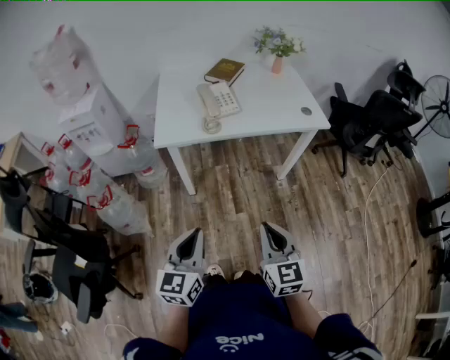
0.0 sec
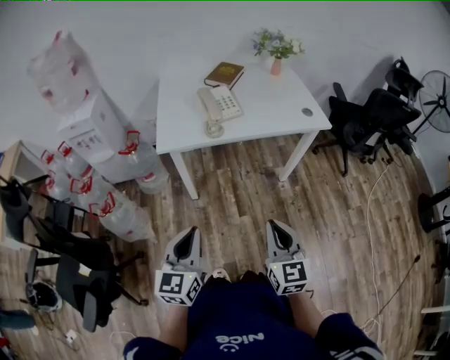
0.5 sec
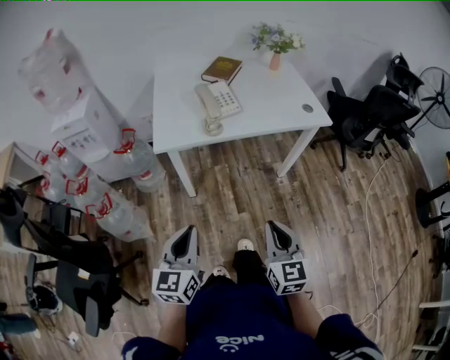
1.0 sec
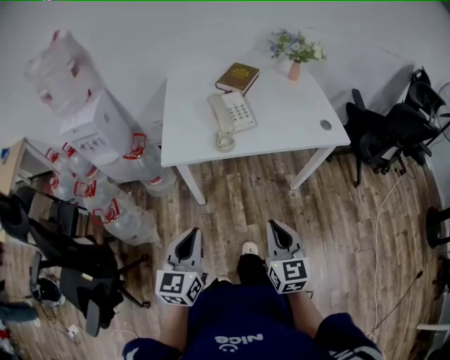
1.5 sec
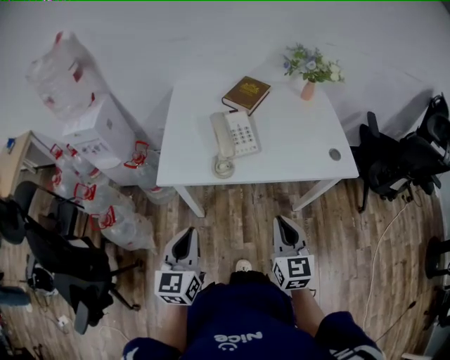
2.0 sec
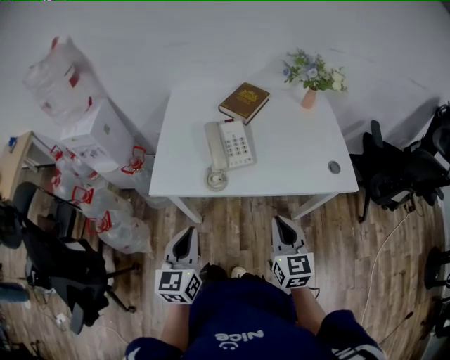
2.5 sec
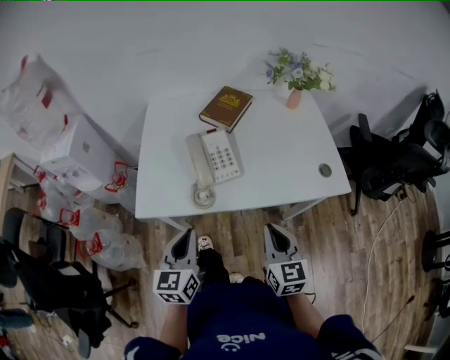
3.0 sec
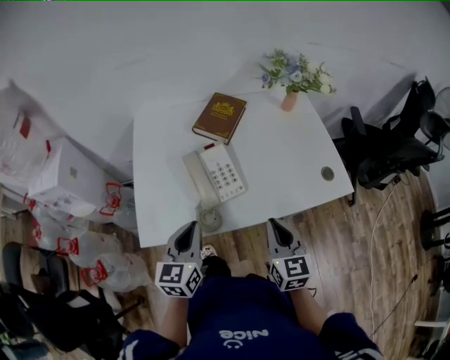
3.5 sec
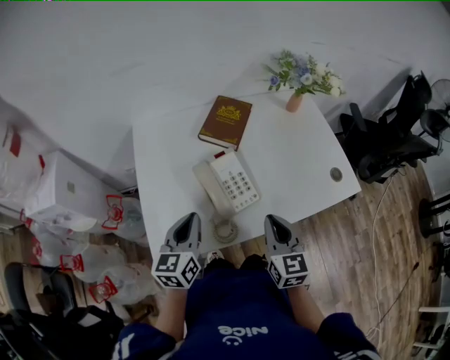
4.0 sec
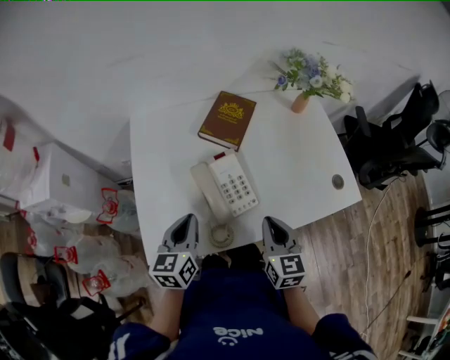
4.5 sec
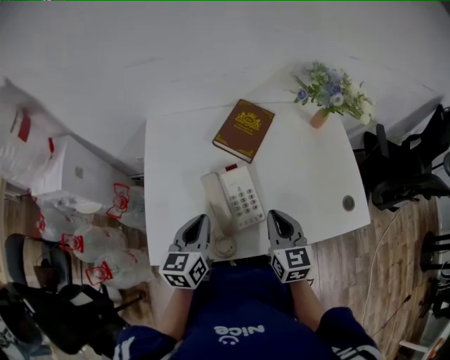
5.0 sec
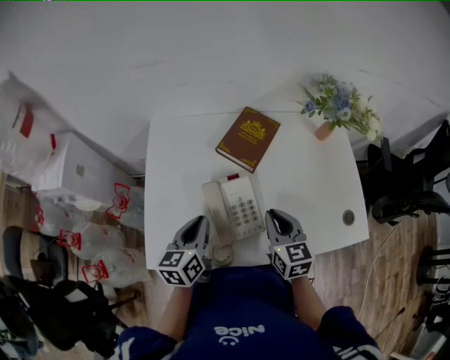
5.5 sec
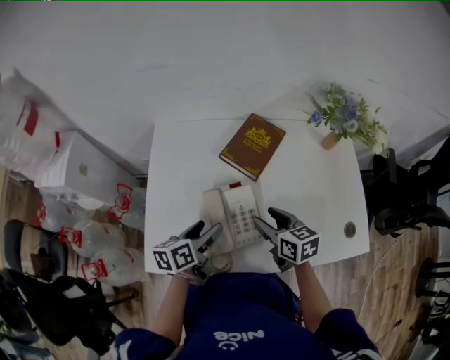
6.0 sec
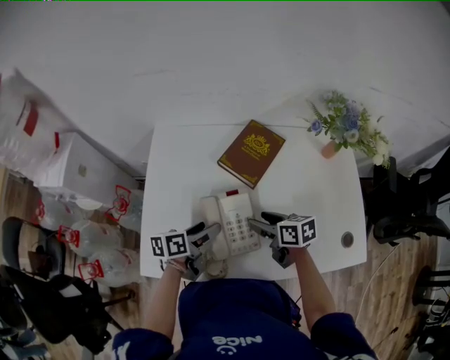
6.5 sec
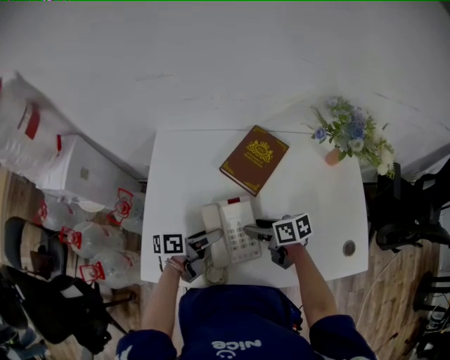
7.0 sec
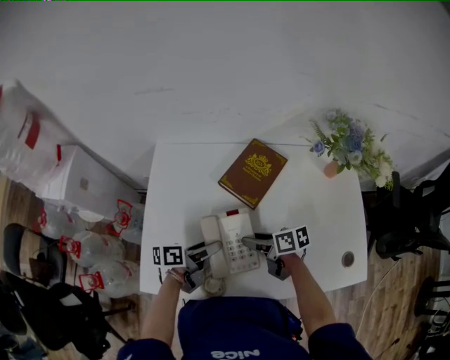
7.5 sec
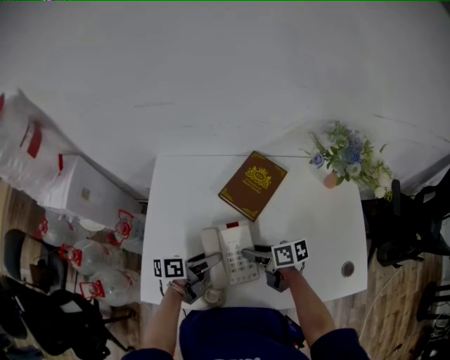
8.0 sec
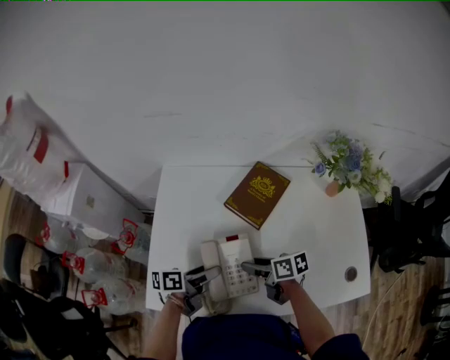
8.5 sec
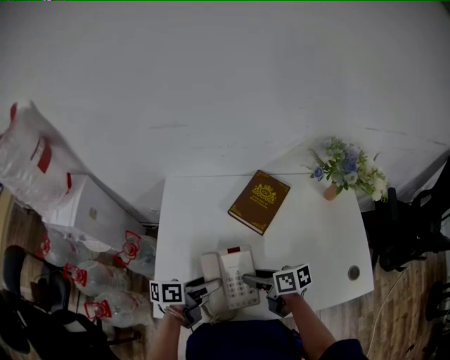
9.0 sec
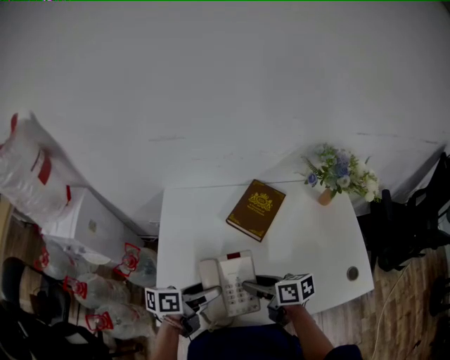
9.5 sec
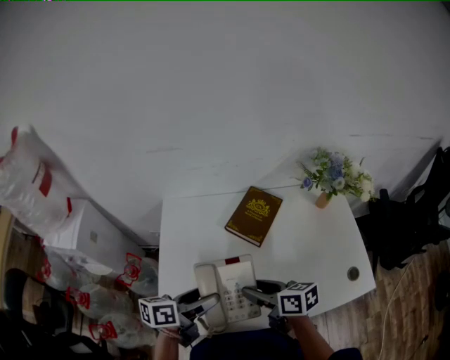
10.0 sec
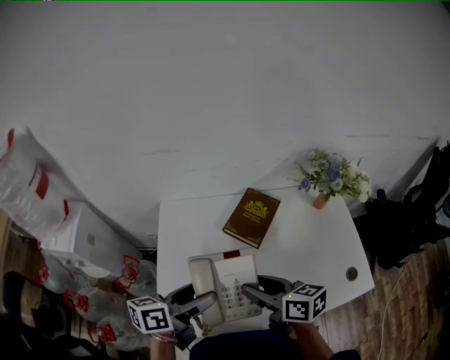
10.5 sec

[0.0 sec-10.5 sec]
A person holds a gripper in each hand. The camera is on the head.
0.0 sec to 2.0 sec: The two grippers go approximately 25 cm forward.
2.0 sec to 4.0 sec: The grippers both shift forward by approximately 25 cm.
4.0 sec to 6.5 sec: The left gripper moves forward, downward and to the right, some 15 cm, swivels about 40 degrees, and opens; the right gripper heads forward and downward, covering roughly 20 cm, rotates roughly 60 degrees, and opens.
6.5 sec to 8.5 sec: The grippers make only small movements.
8.5 sec to 10.5 sec: The two grippers go about 20 cm upward. The left gripper rotates roughly 20 degrees. Meanwhile the right gripper changes its angle by approximately 30 degrees.

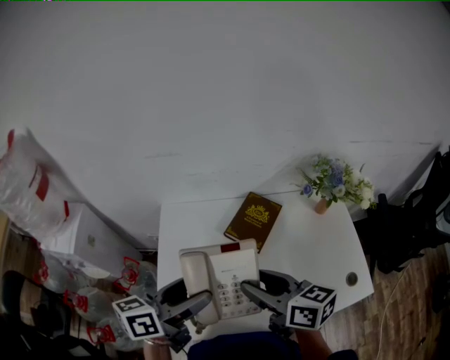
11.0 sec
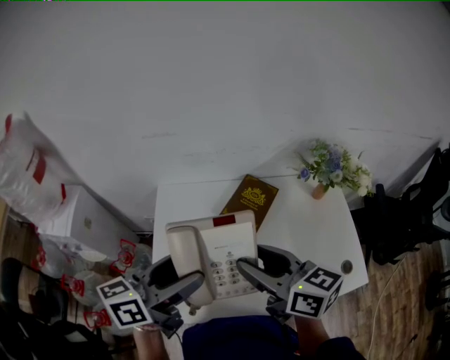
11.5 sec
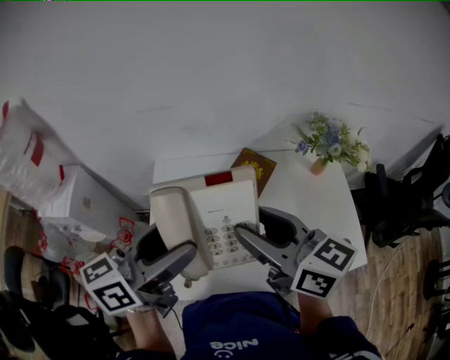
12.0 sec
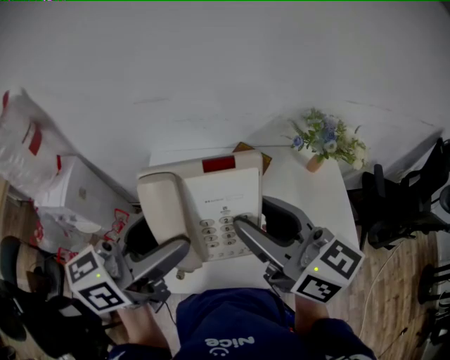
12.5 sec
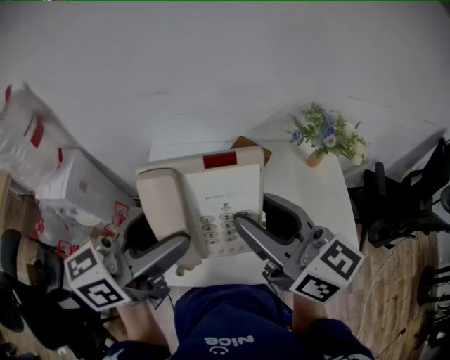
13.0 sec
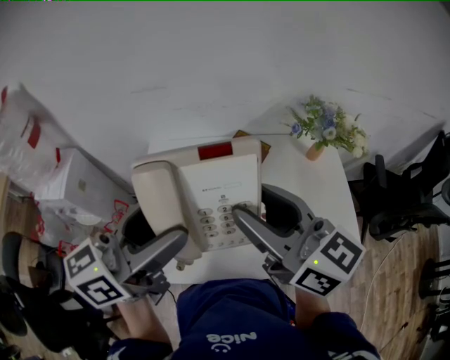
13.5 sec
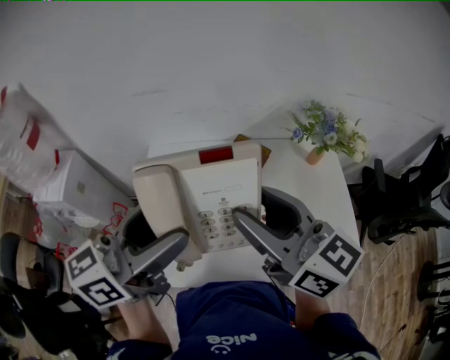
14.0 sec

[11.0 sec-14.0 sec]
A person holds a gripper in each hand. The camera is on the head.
11.0 sec to 12.5 sec: Both grippers travel together upward, some 15 cm. The right gripper turns by approximately 20 degrees. Meanwhile the left gripper rotates about 20 degrees.
12.5 sec to 14.0 sec: The grippers stay close to where they were, moving slightly.

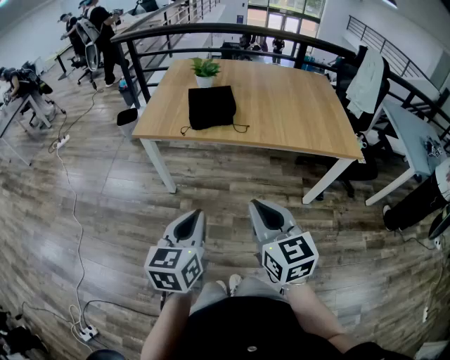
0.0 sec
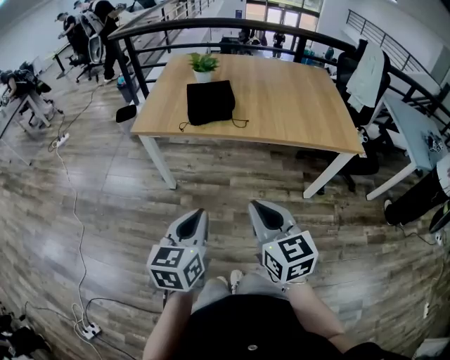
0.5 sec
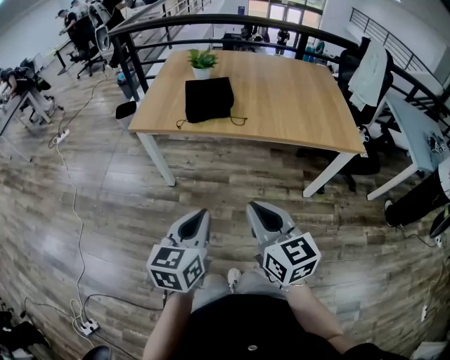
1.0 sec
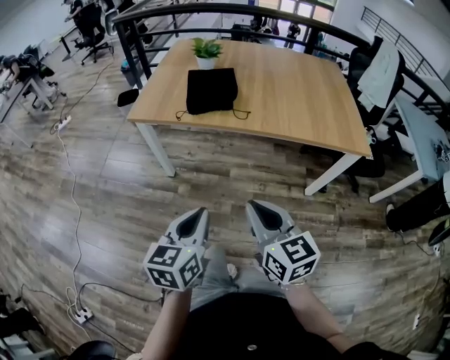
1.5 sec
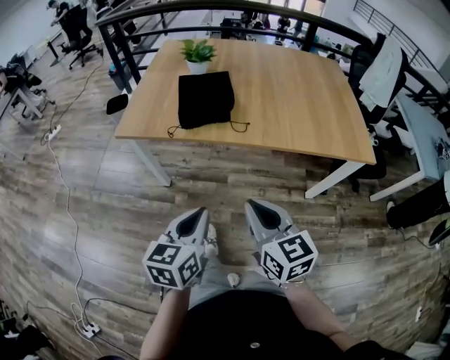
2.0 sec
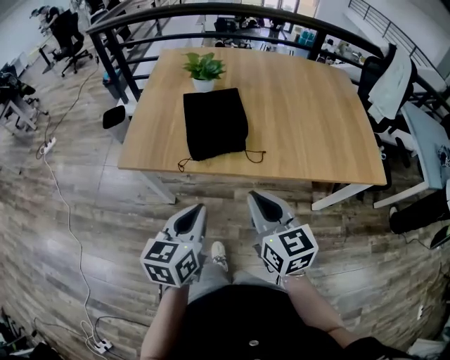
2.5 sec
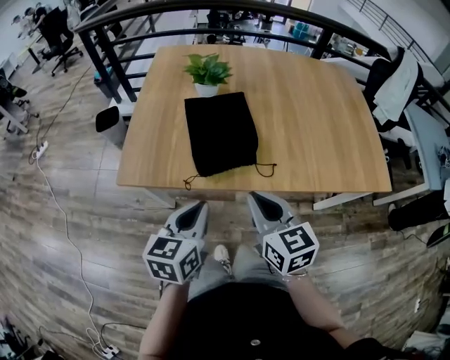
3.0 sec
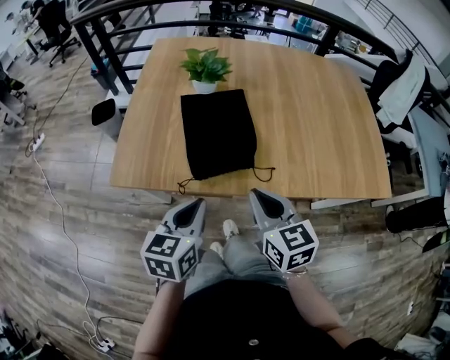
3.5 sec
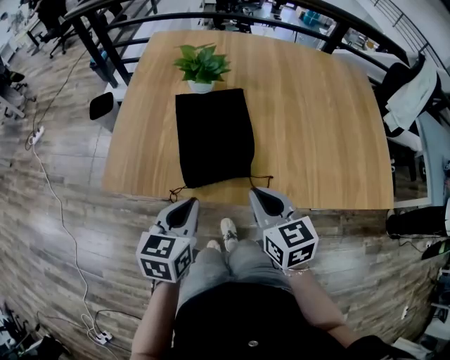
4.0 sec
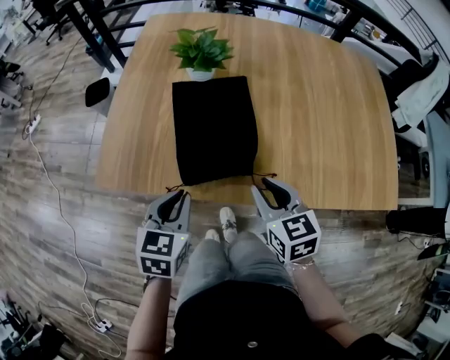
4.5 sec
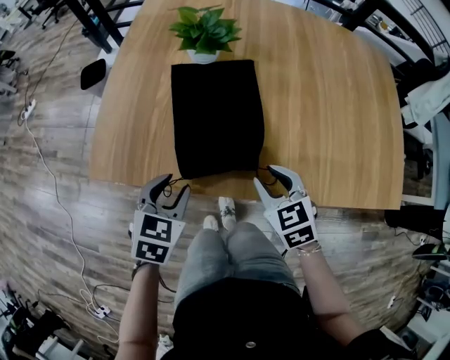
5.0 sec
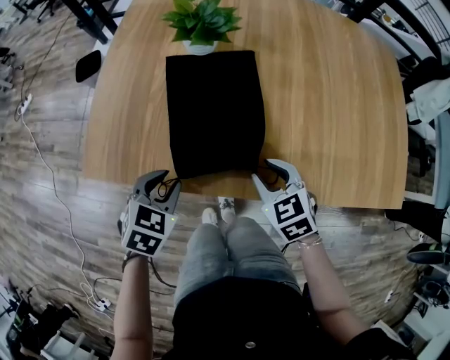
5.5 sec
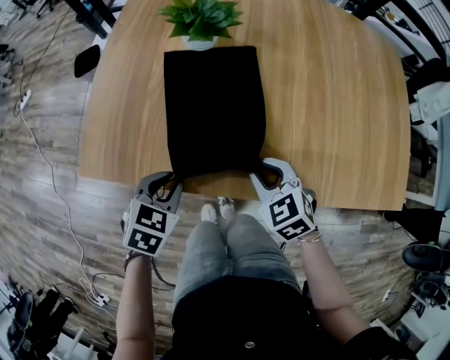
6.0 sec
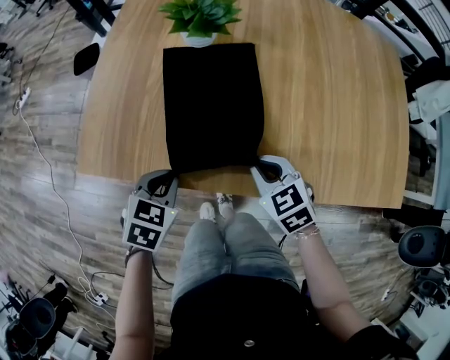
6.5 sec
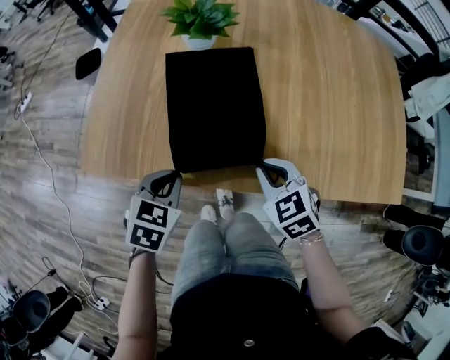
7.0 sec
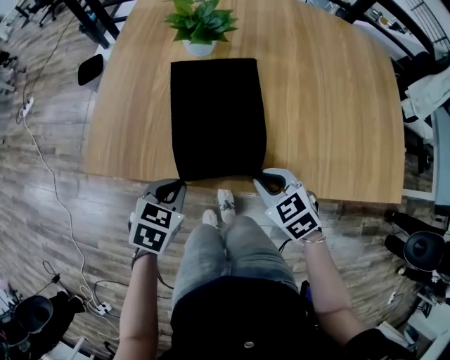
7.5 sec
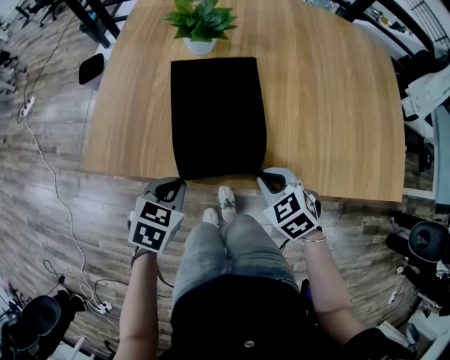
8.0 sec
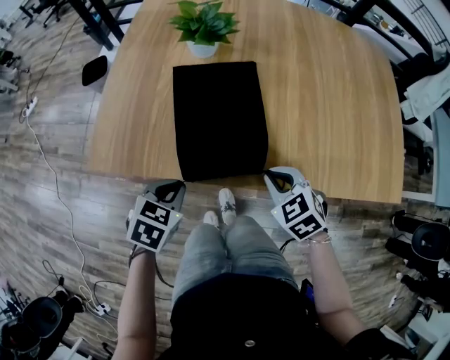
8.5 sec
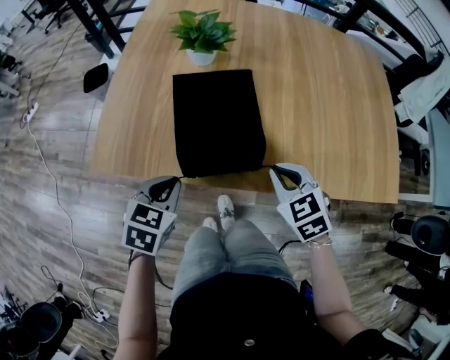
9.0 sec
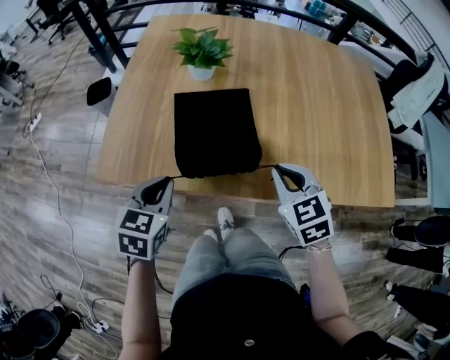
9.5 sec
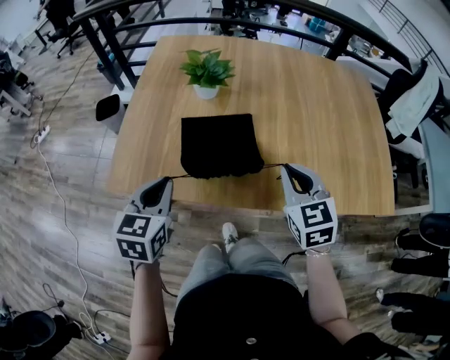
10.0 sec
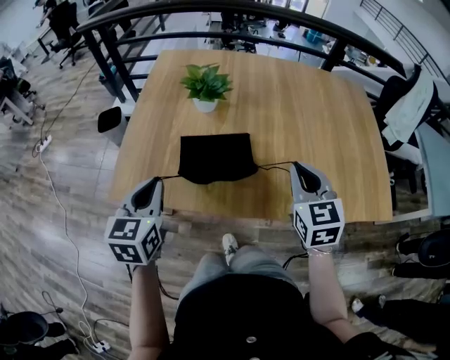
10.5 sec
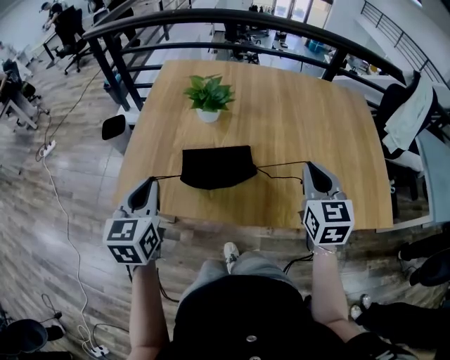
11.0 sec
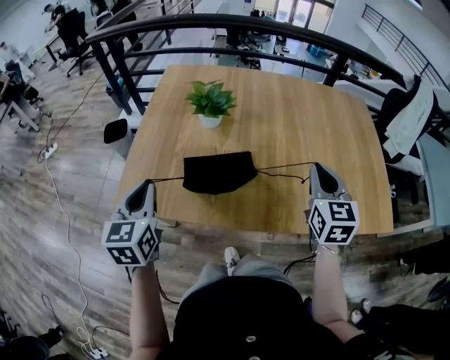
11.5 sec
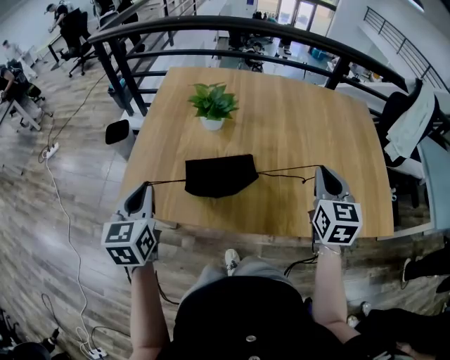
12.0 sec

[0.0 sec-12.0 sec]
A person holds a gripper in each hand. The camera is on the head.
0.0 sec to 2.0 sec: The grippers both shift forward and downward by approximately 15 cm.
2.0 sec to 4.0 sec: The grippers both shift forward by some 30 cm.
4.0 sec to 6.0 sec: Both grippers travel together downward and forward, approximately 15 cm. The left gripper turns by approximately 30 degrees. Meanwhile the right gripper swivels some 40 degrees.
6.0 sec to 8.0 sec: The right gripper travels backward by about 5 cm.
8.0 sec to 10.0 sec: Both grippers travel together upward, about 15 cm. The right gripper rotates roughly 40 degrees. The left gripper turns by some 30 degrees.
10.0 sec to 12.0 sec: The right gripper is displaced to the right and upward by roughly 10 cm, and changes its angle by about 20 degrees, while the left gripper shifts roughly 10 cm to the left and upward.

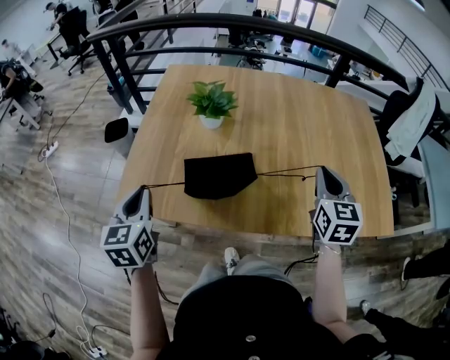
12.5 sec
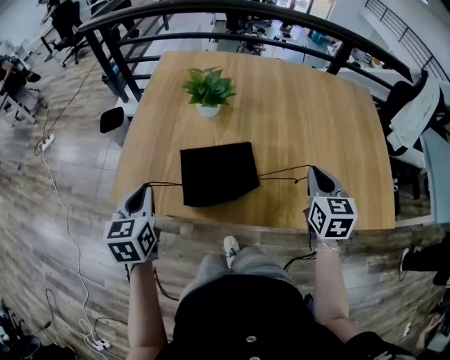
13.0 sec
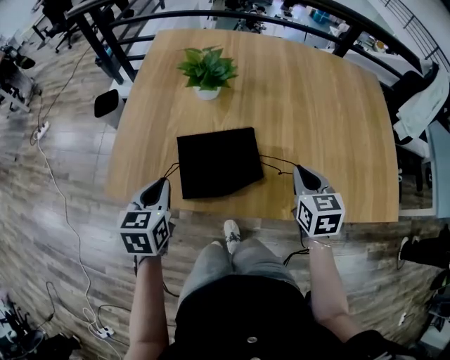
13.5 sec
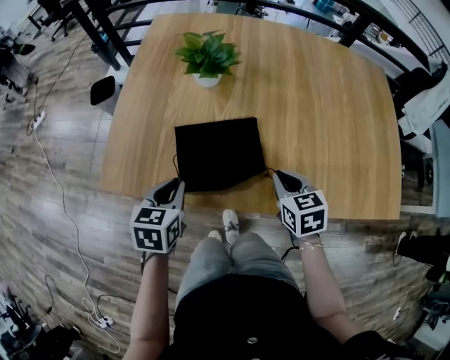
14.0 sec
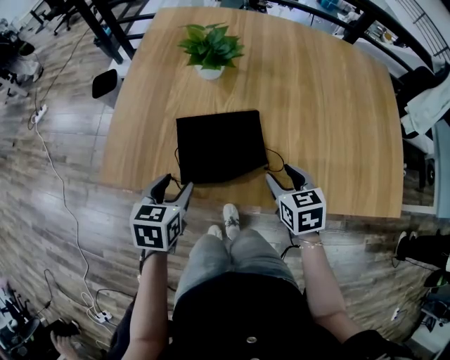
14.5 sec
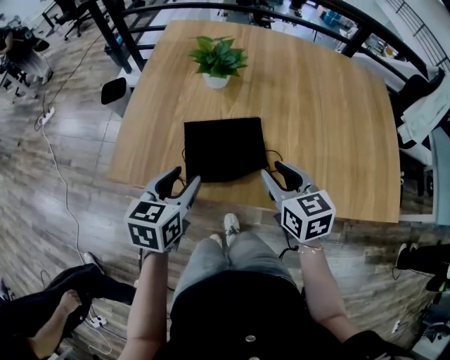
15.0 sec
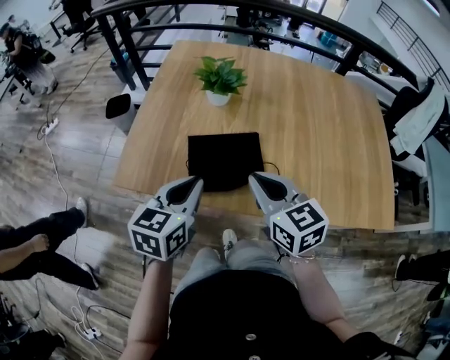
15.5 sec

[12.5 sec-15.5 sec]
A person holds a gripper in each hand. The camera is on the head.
12.5 sec to 14.0 sec: The left gripper goes roughly 15 cm downward and to the right, and swivels roughly 30 degrees. The right gripper heads downward and to the left, covering approximately 20 cm, and changes its angle by approximately 30 degrees.
14.0 sec to 15.5 sec: The left gripper is displaced upward by some 10 cm, and opens, then closes once more. The right gripper goes approximately 20 cm upward and to the left, turns by some 30 degrees, and opens, then closes once more.
